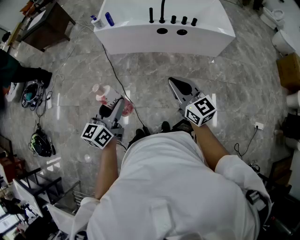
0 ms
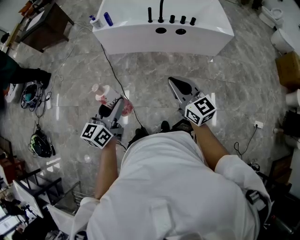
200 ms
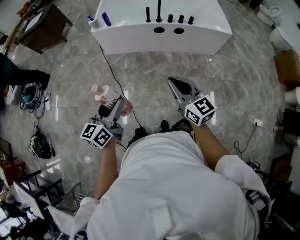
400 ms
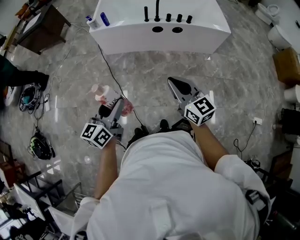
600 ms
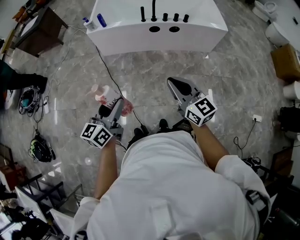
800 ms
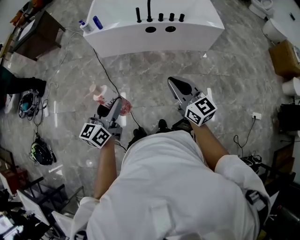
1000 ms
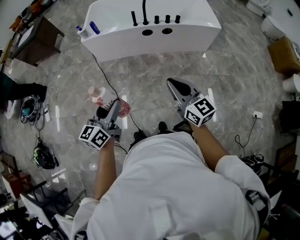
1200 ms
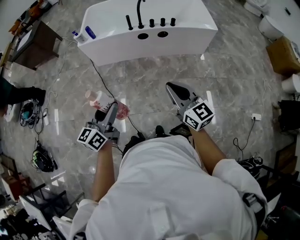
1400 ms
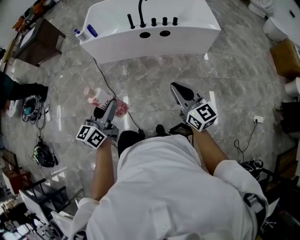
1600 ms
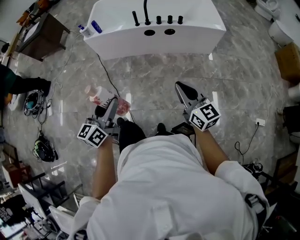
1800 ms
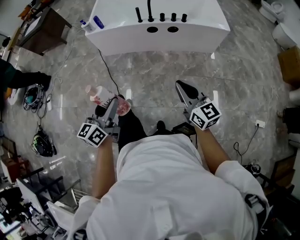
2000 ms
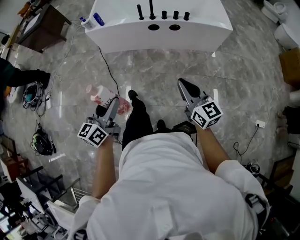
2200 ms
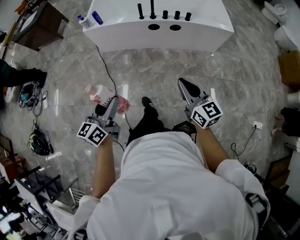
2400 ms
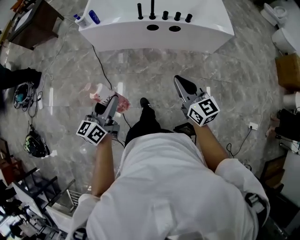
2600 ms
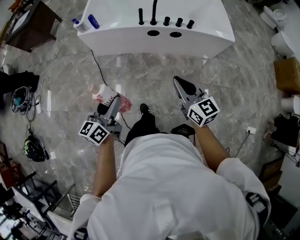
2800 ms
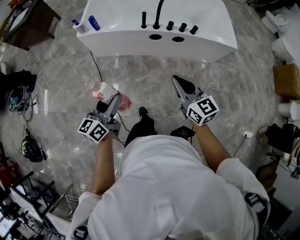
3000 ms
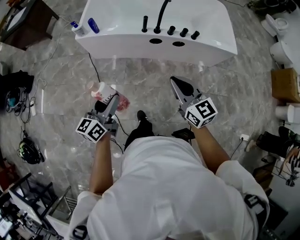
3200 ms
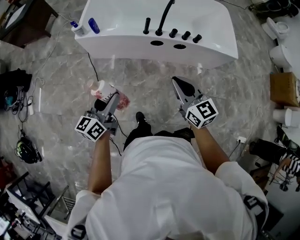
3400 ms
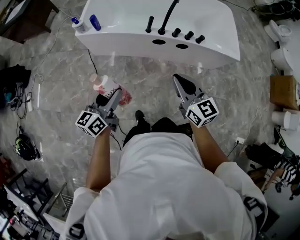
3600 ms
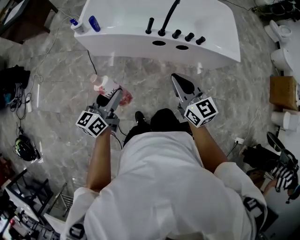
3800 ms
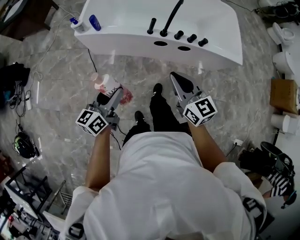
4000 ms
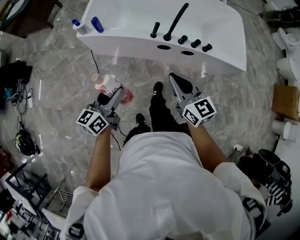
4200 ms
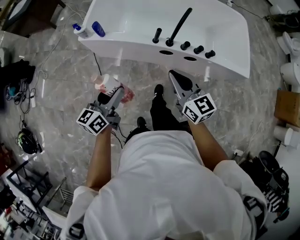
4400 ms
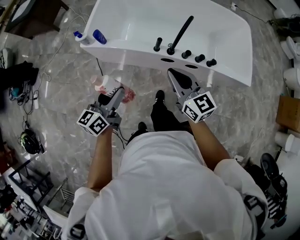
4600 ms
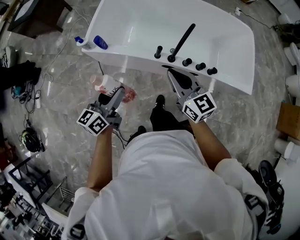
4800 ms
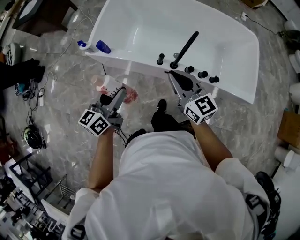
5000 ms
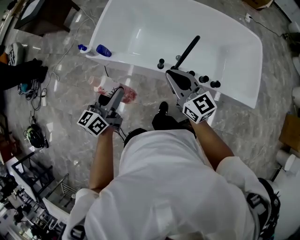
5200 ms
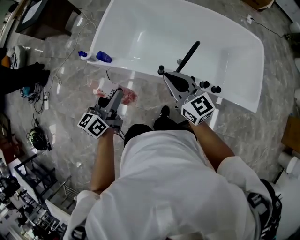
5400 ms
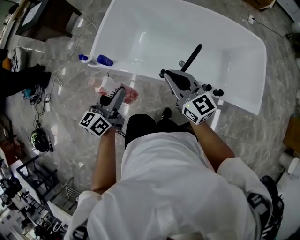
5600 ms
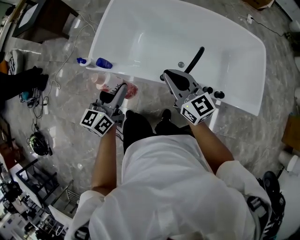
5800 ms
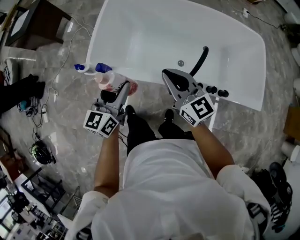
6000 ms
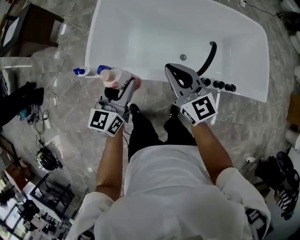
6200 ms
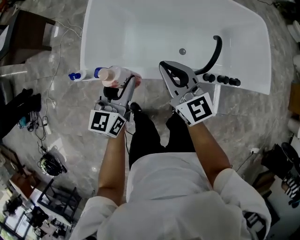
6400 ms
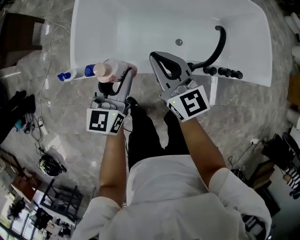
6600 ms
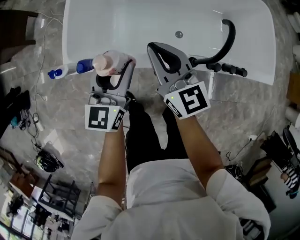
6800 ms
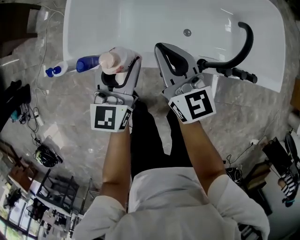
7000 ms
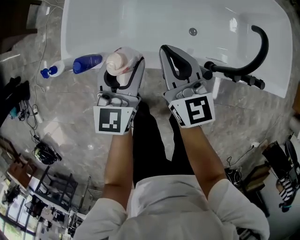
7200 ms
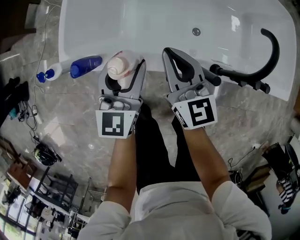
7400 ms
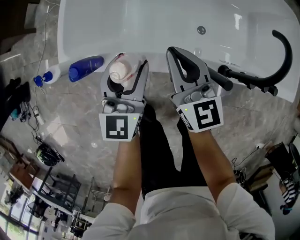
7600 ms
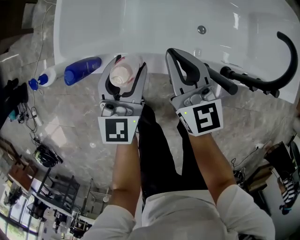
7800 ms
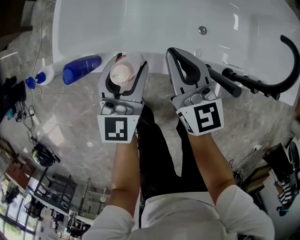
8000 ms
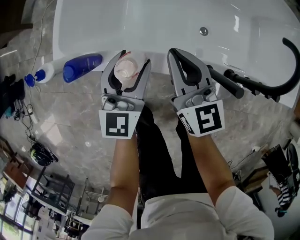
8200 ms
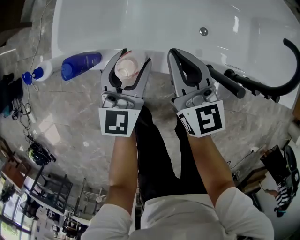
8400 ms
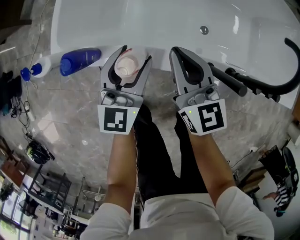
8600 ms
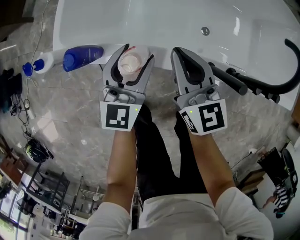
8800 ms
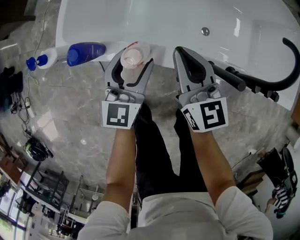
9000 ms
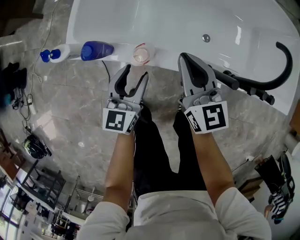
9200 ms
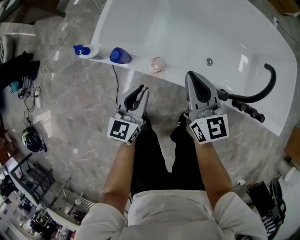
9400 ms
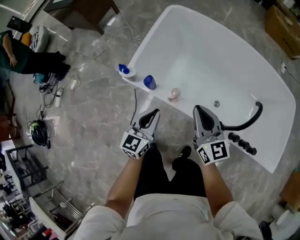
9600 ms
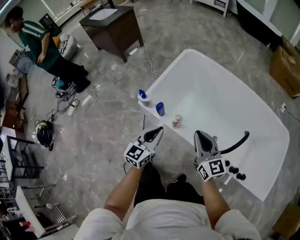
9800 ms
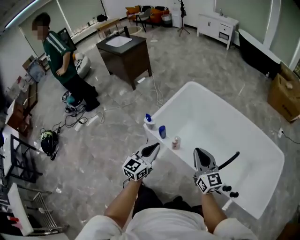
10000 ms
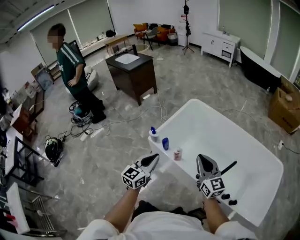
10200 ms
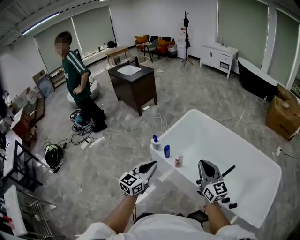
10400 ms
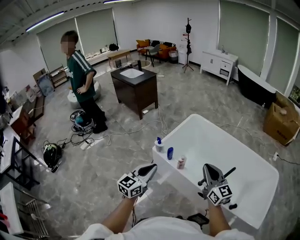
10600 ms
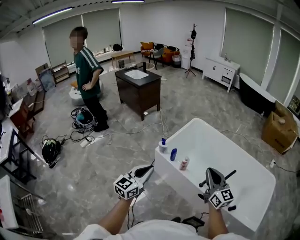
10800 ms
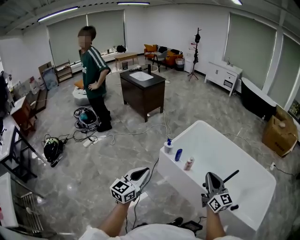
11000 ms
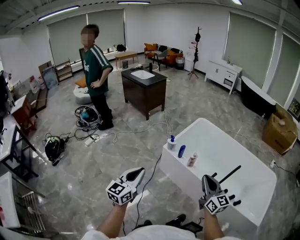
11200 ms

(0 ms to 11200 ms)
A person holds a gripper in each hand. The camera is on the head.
0 ms - 1600 ms: Both grippers travel together to the right, about 10 cm.
1600 ms - 3200 ms: The grippers both shift forward by approximately 30 cm.
3200 ms - 4800 ms: Both grippers travel together forward, about 30 cm.
4800 ms - 6400 ms: The right gripper goes approximately 25 cm forward and to the left, while the left gripper travels forward by roughly 25 cm.
6400 ms - 8000 ms: Both grippers travel together downward, roughly 20 cm.
8000 ms - 9600 ms: The left gripper is displaced backward and upward by about 15 cm, and closes its fingers, while the right gripper goes approximately 15 cm upward and backward.
9600 ms - 11200 ms: The right gripper moves backward and upward, about 35 cm; the left gripper moves backward, upward and to the left, approximately 50 cm, and changes its angle by roughly 20 degrees.

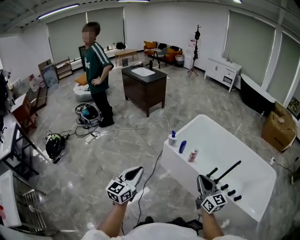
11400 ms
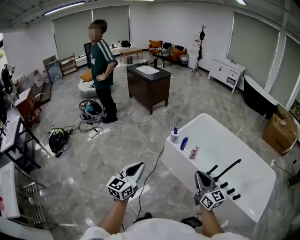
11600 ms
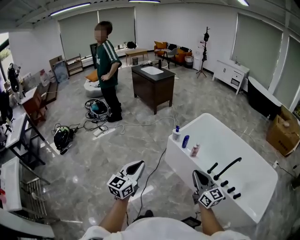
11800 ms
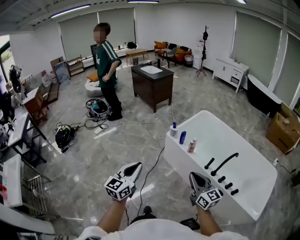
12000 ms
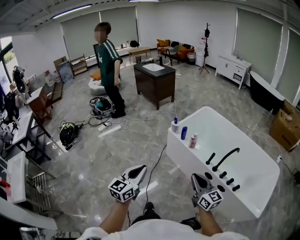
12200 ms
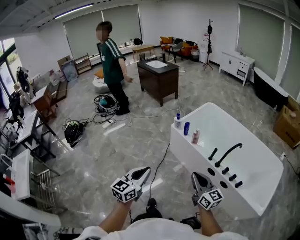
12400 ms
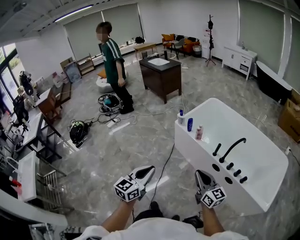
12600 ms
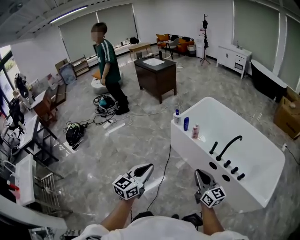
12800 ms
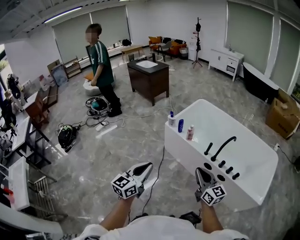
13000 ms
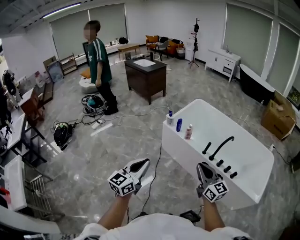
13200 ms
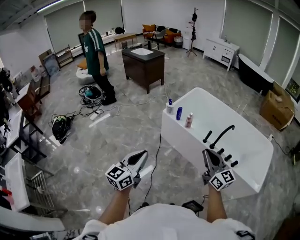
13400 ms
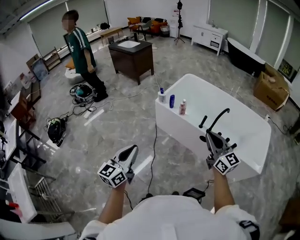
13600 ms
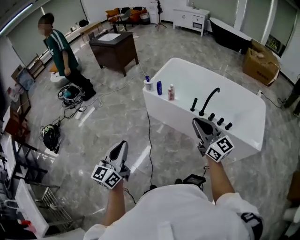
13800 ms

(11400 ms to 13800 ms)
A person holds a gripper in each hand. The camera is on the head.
11400 ms - 12600 ms: The right gripper is displaced backward by about 15 cm; the left gripper goes approximately 25 cm backward and to the right.
12600 ms - 13800 ms: The right gripper travels upward by roughly 10 cm. Meanwhile the left gripper goes roughly 10 cm to the left.

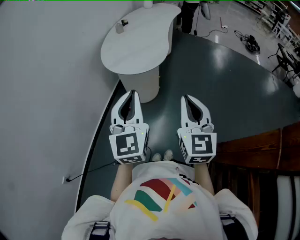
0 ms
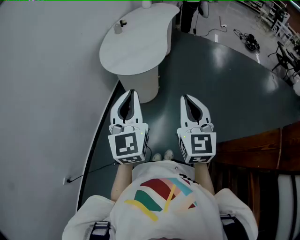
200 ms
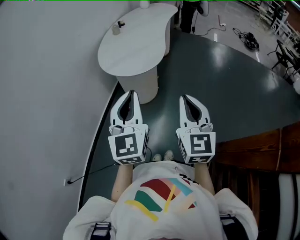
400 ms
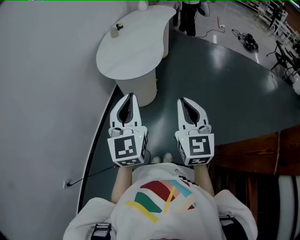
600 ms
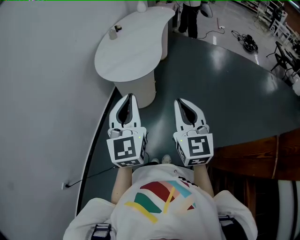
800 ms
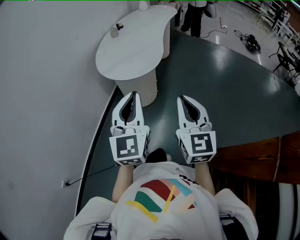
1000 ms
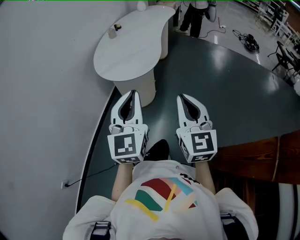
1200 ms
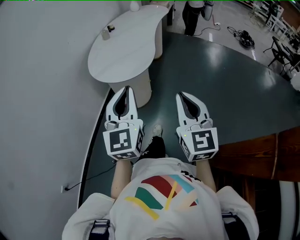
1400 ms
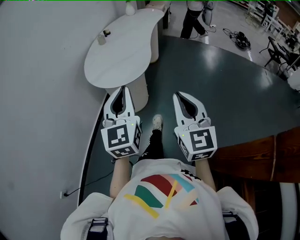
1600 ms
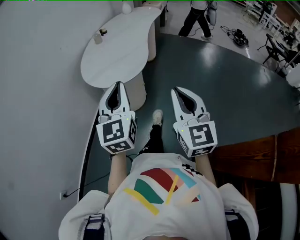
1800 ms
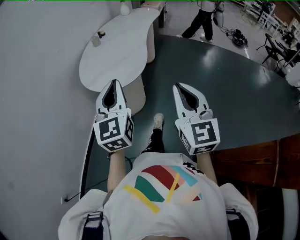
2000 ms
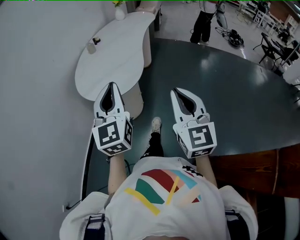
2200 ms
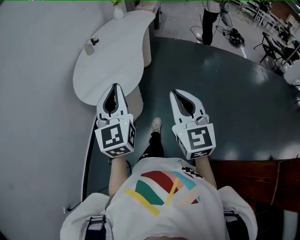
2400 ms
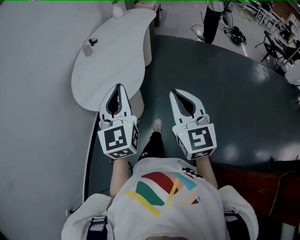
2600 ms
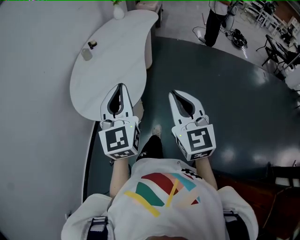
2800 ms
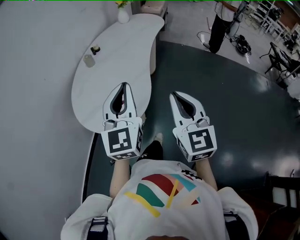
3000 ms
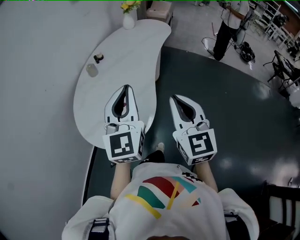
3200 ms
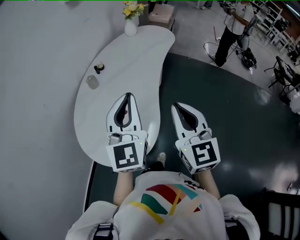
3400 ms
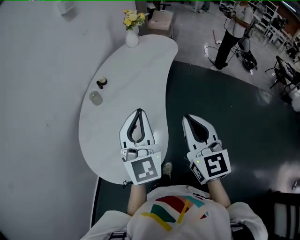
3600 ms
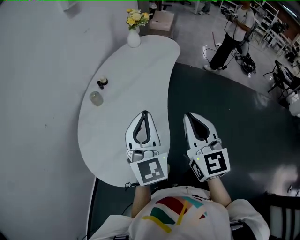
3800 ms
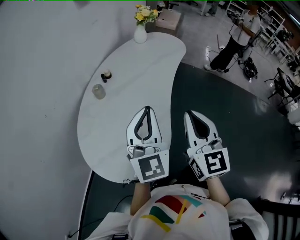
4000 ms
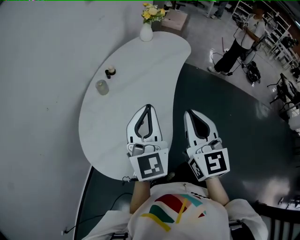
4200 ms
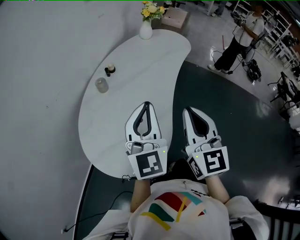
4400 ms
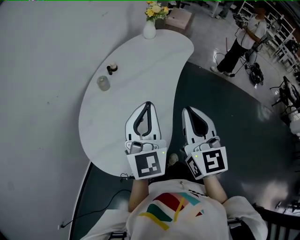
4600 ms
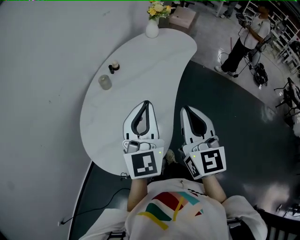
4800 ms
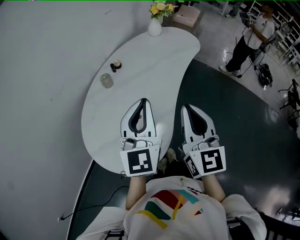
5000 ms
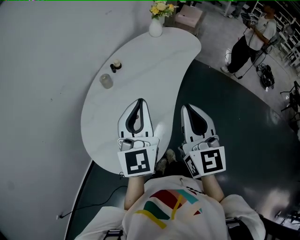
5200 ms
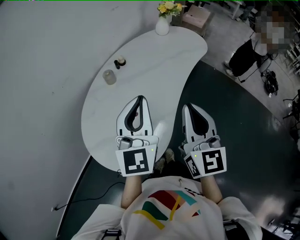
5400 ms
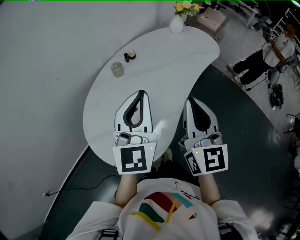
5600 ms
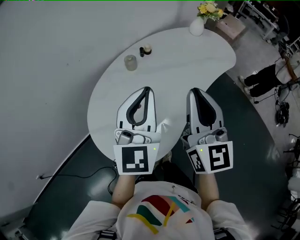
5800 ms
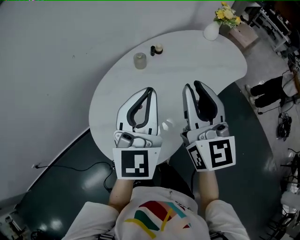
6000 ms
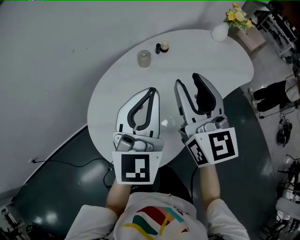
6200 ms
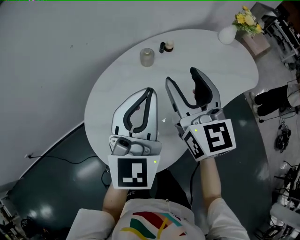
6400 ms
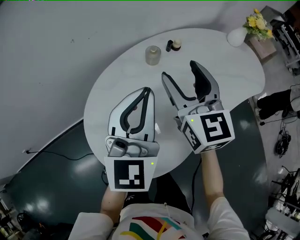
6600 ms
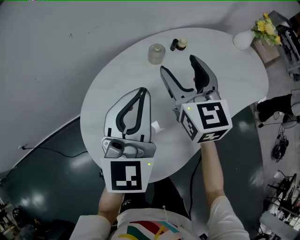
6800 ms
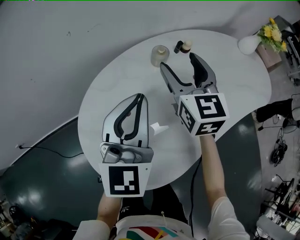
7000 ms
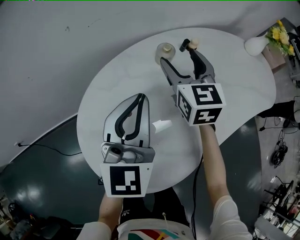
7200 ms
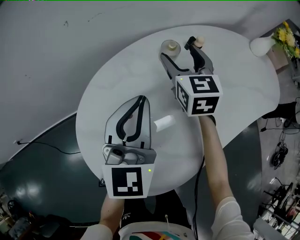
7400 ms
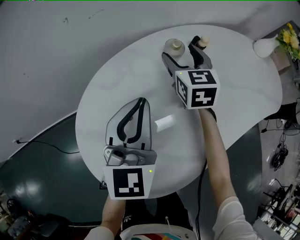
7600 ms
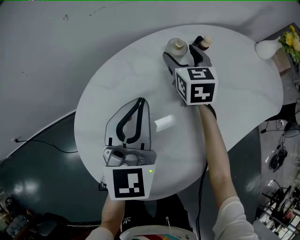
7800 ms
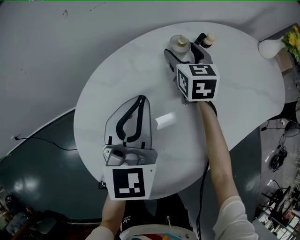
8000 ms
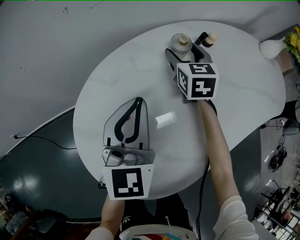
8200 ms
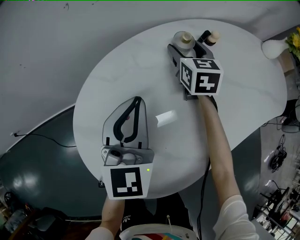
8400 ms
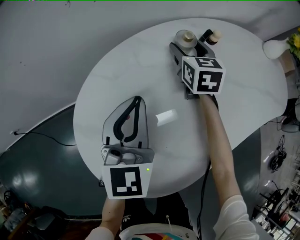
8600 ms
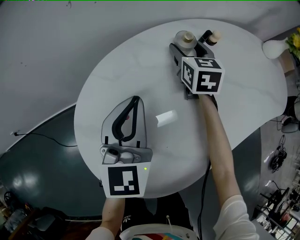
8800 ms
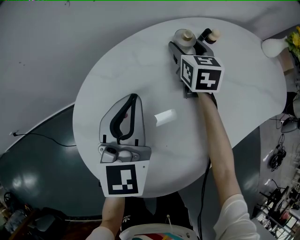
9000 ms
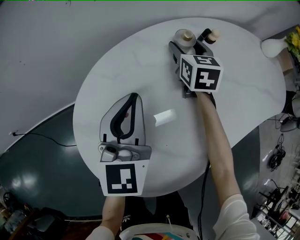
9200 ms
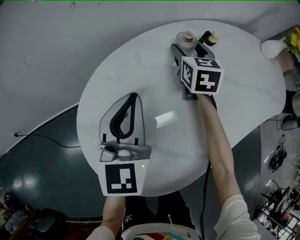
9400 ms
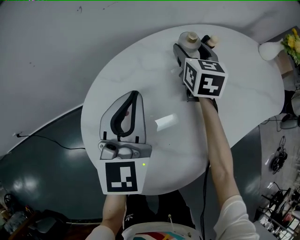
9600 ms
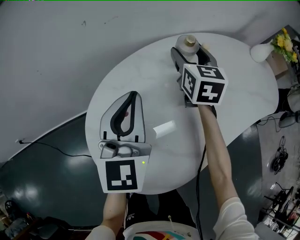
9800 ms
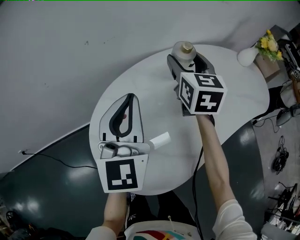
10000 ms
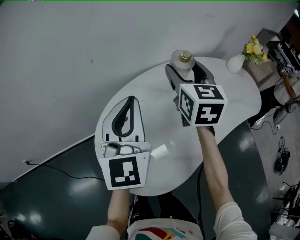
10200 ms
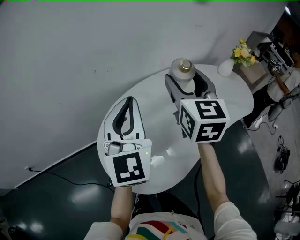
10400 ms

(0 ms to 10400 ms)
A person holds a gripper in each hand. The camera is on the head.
0 ms - 1400 ms: The right gripper moves to the right, some 5 cm, while the left gripper moves to the right and forward, roughly 10 cm.
1400 ms - 3000 ms: Both grippers travel together forward, some 30 cm.
3000 ms - 4400 ms: The grippers both shift forward by about 20 cm.
4400 ms - 6000 ms: The left gripper moves to the left, some 5 cm. Meanwhile the right gripper moves forward and to the left, some 15 cm, and turns by roughly 30 degrees.
6000 ms - 7400 ms: The right gripper goes about 35 cm forward and downward, changes its angle by some 30 degrees, and opens its fingers. The left gripper travels downward, forward and to the left by approximately 20 cm.
7400 ms - 9000 ms: The right gripper moves downward, approximately 10 cm. Meanwhile the left gripper shifts approximately 5 cm downward.
9000 ms - 10400 ms: The left gripper goes approximately 25 cm upward. The right gripper is displaced upward and backward by some 35 cm.
